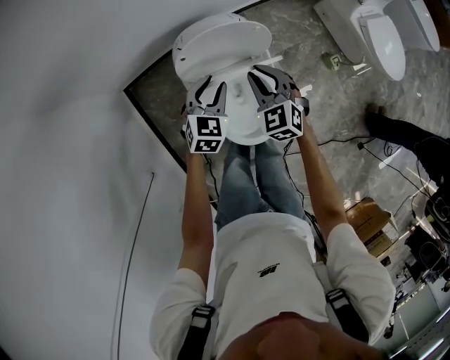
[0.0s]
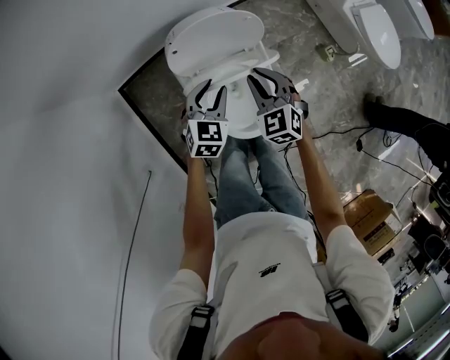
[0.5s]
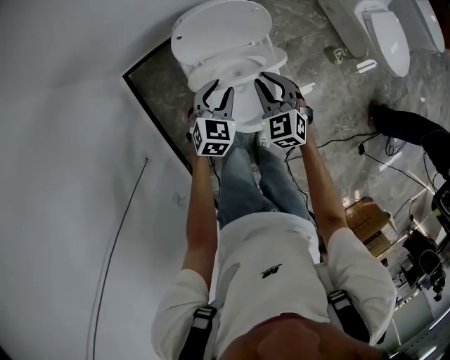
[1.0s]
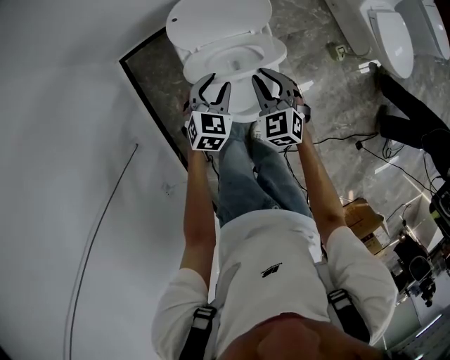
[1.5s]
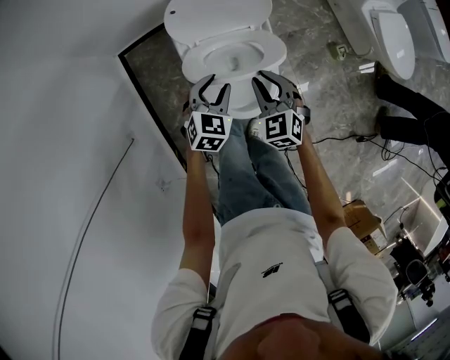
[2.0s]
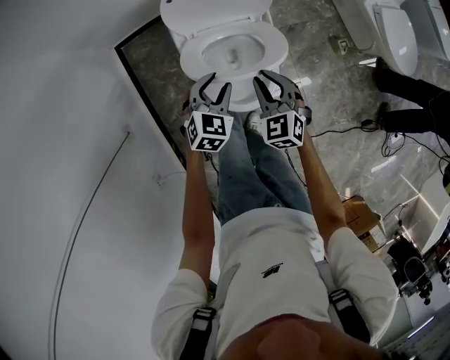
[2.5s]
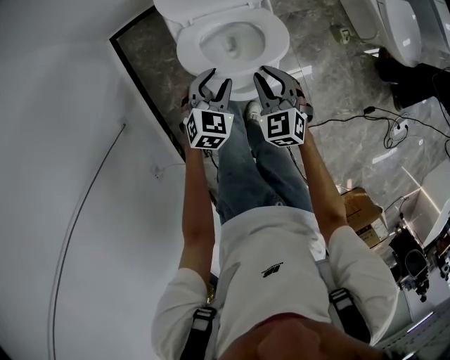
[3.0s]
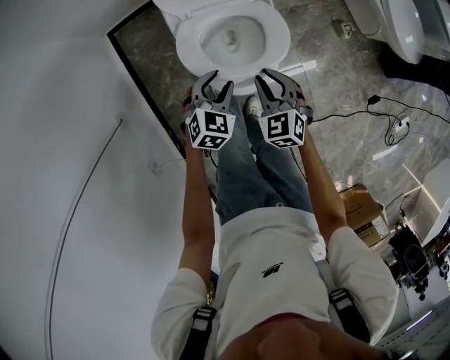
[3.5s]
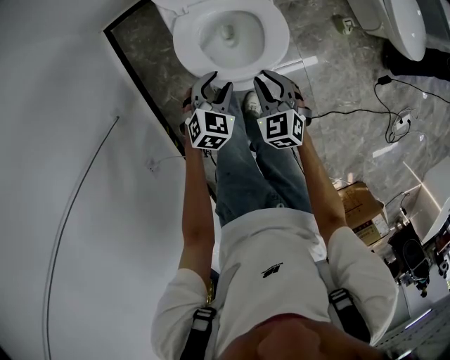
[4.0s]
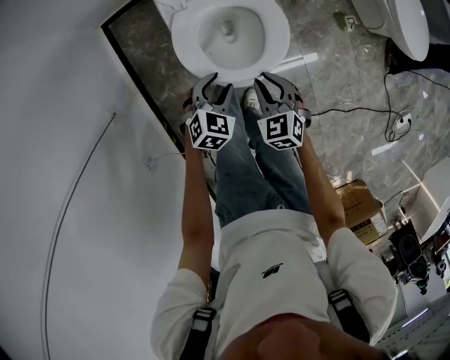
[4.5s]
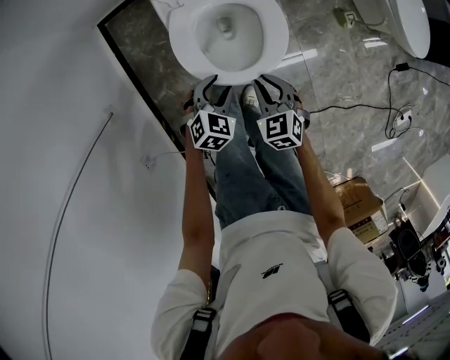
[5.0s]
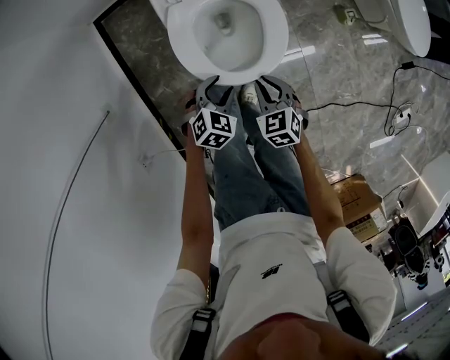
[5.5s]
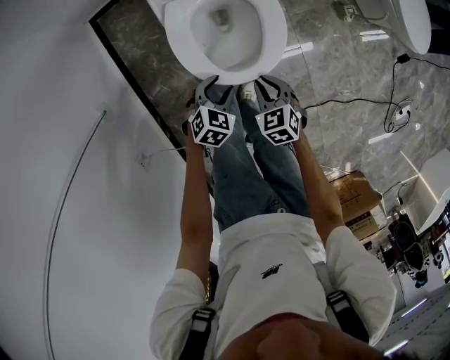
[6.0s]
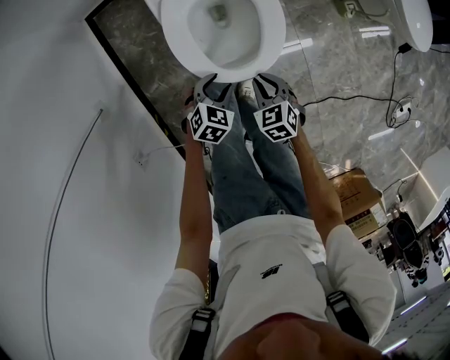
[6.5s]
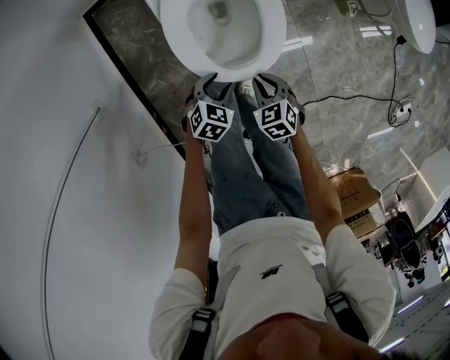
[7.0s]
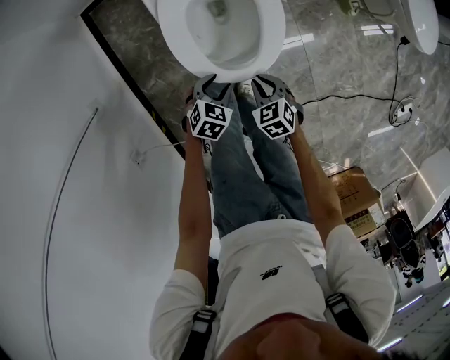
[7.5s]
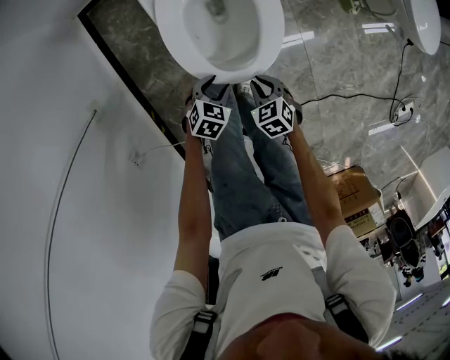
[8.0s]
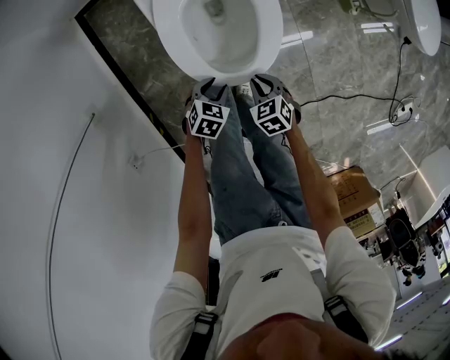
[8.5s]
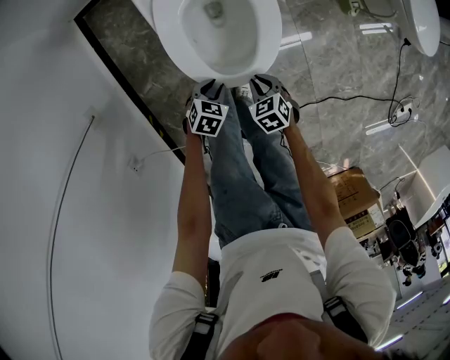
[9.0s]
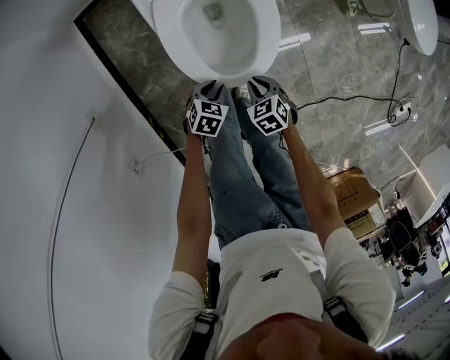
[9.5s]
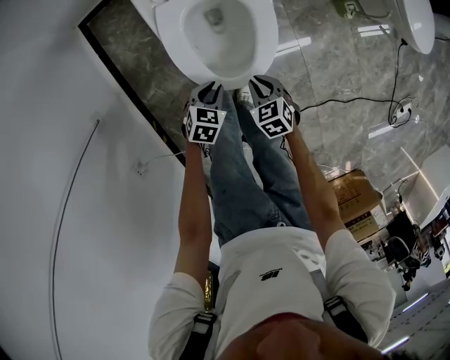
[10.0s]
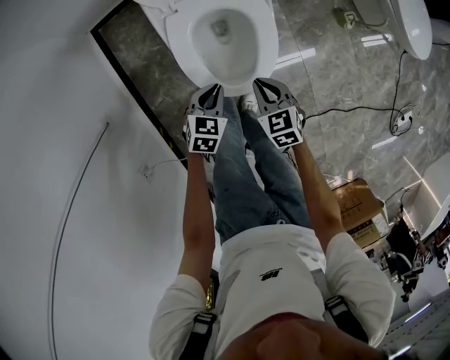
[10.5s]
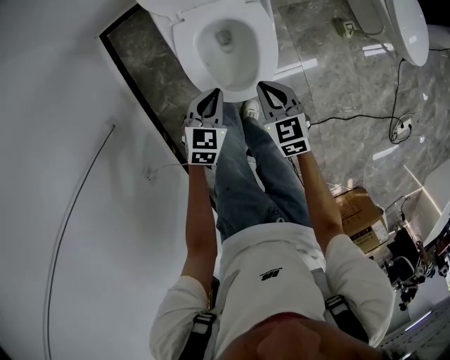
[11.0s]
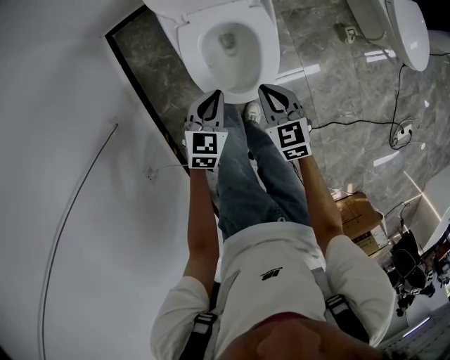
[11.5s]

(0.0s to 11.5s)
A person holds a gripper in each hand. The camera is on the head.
0.0s - 2.0s: Both grippers travel together backward, some 15 cm.
2.0s - 4.0s: Both grippers travel together backward and downward, approximately 15 cm.
4.0s - 6.0s: Both grippers travel together downward and backward, about 10 cm.
6.0s - 7.5s: The grippers both shift downward by some 5 cm.
7.5s - 9.5s: The two grippers go about 5 cm downward. The left gripper closes its fingers.
9.5s - 11.5s: The two grippers go about 20 cm upward. The right gripper rotates approximately 30 degrees. The left gripper rotates approximately 30 degrees.

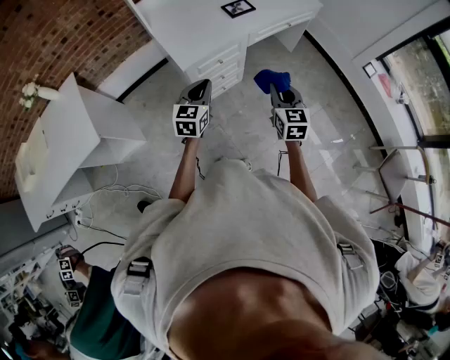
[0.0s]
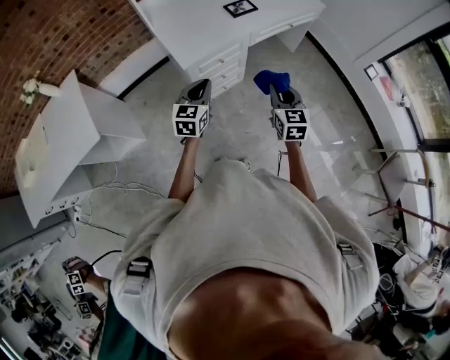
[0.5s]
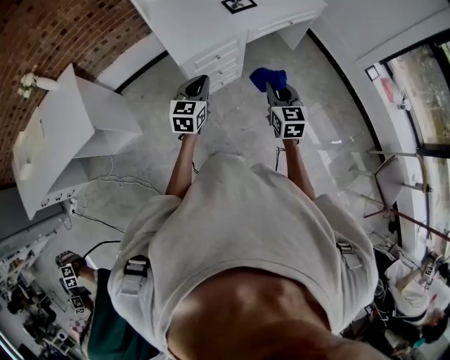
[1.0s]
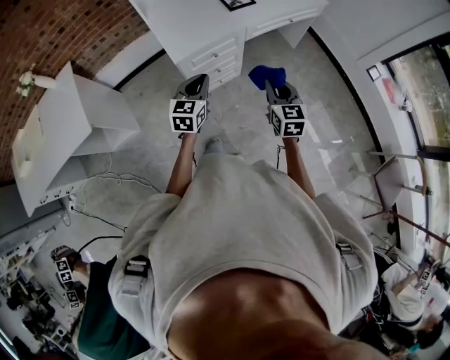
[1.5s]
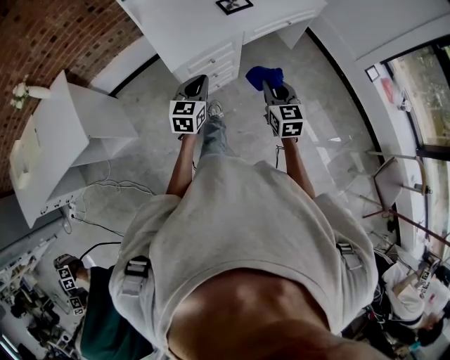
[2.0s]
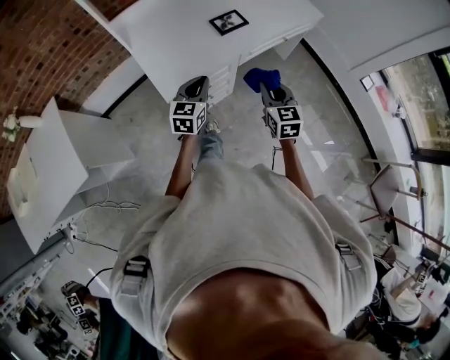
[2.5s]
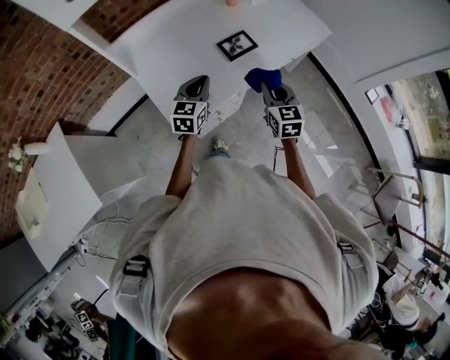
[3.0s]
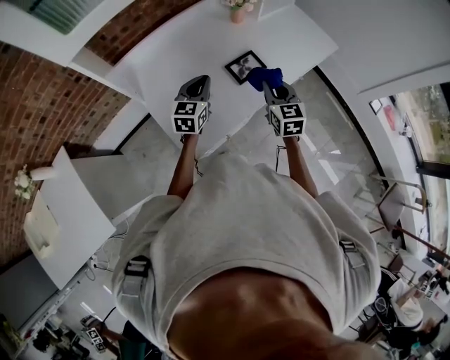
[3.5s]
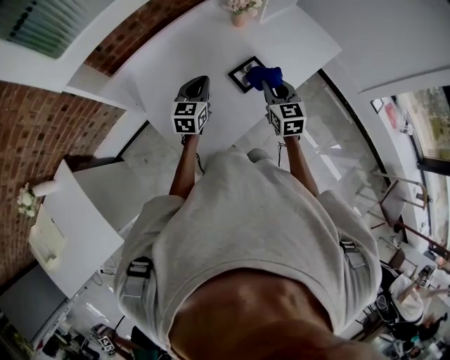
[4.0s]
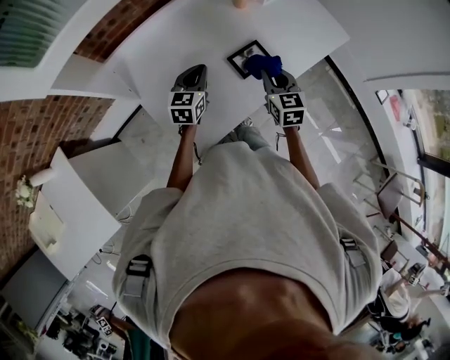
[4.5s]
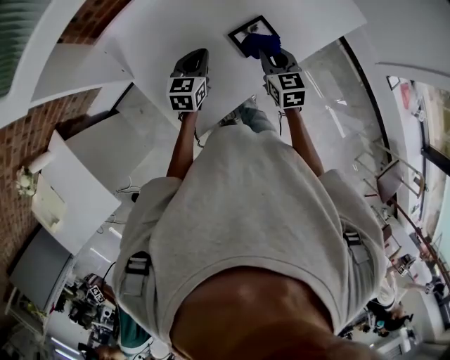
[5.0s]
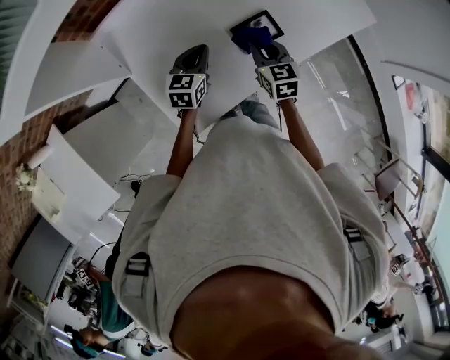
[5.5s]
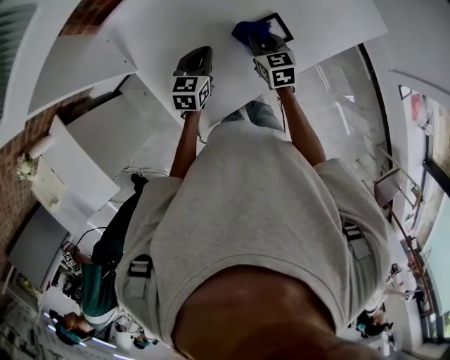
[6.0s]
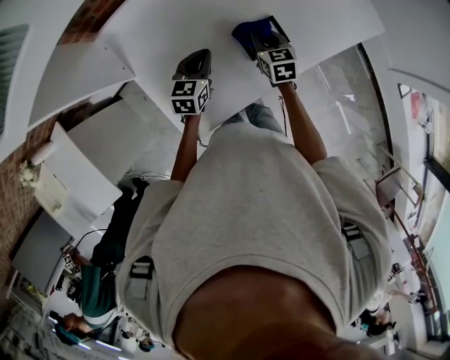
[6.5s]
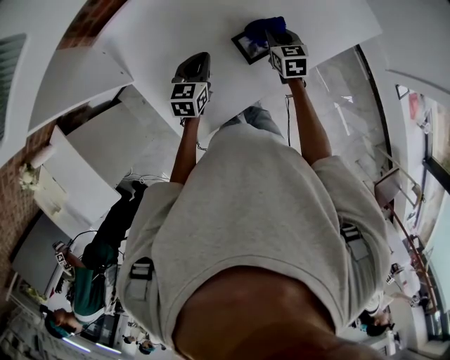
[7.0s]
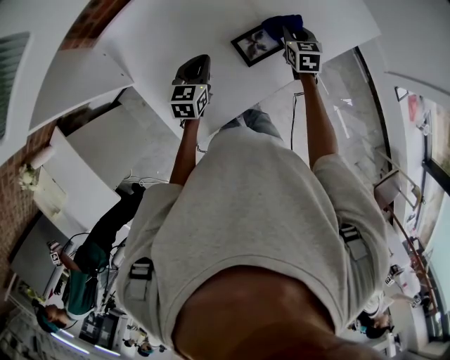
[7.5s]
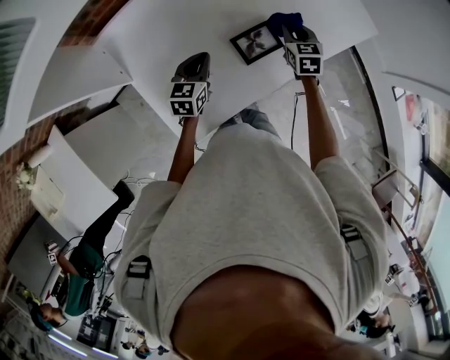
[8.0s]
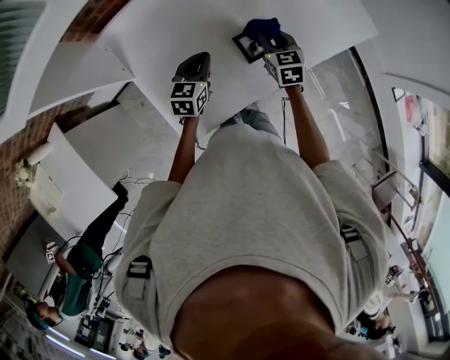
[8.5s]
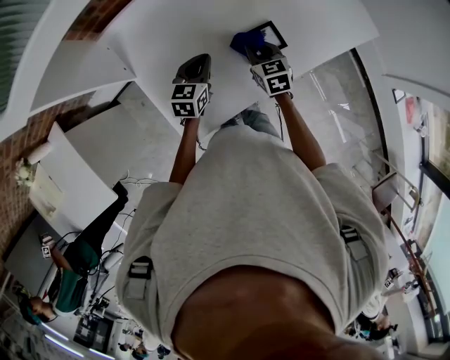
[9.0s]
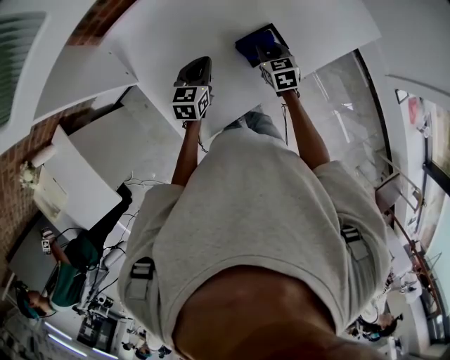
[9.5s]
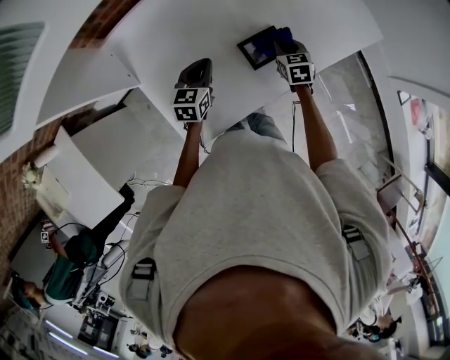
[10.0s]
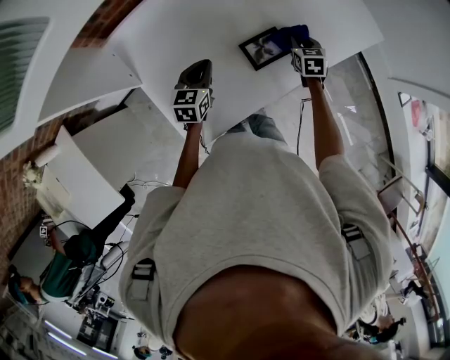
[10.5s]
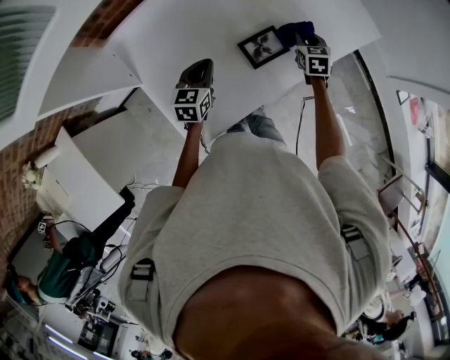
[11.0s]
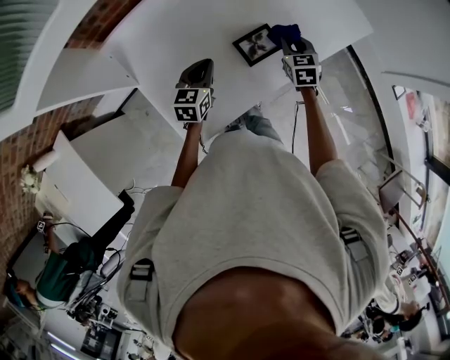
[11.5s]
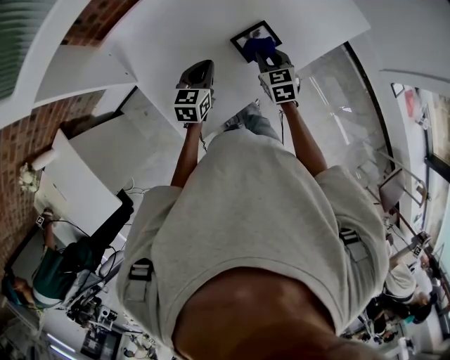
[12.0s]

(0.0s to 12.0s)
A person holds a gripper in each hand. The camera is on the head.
0.0s - 2.0s: Both grippers move forward, roughly 5 cm.
2.0s - 4.0s: The two grippers travel together, forward, roughly 50 cm.
4.0s - 6.0s: The right gripper travels downward, forward and to the left by approximately 20 cm, and rotates roughly 20 degrees. The left gripper goes some 10 cm downward.
6.0s - 8.0s: The right gripper goes some 15 cm to the right and forward.
8.0s - 10.0s: The right gripper moves downward, approximately 5 cm, and moves roughly 15 cm to the left and comes back.
10.0s - 12.0s: The left gripper changes place by about 5 cm. The right gripper goes some 10 cm backward and upward.

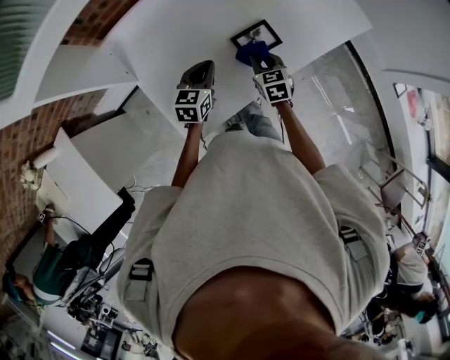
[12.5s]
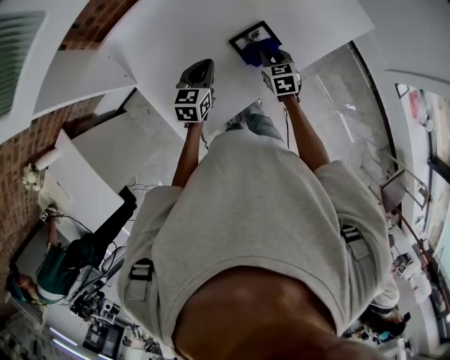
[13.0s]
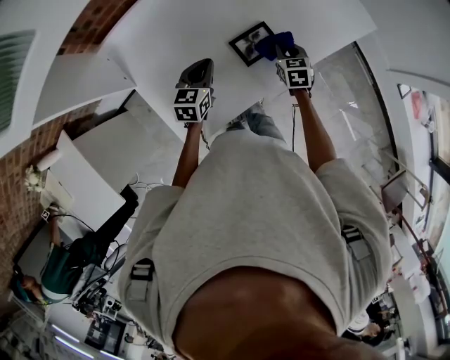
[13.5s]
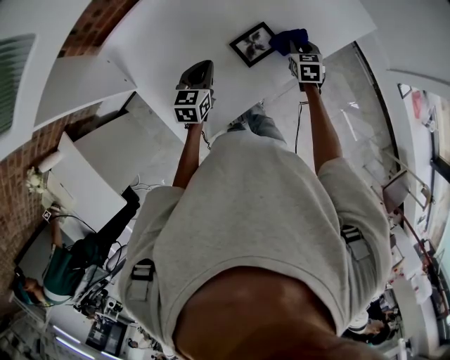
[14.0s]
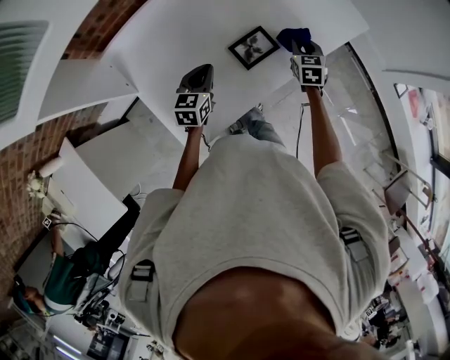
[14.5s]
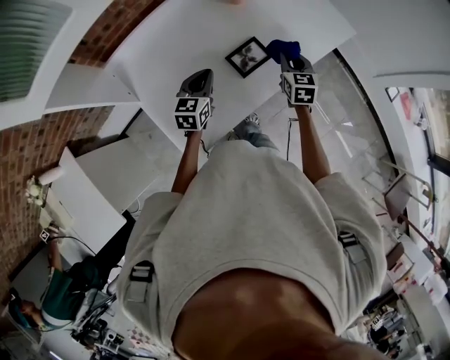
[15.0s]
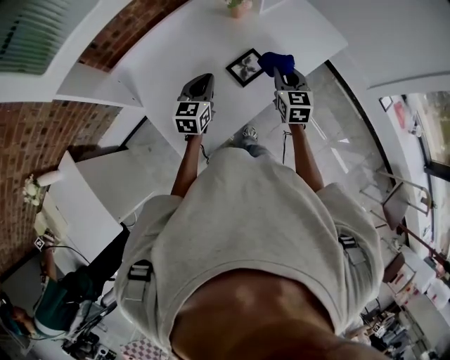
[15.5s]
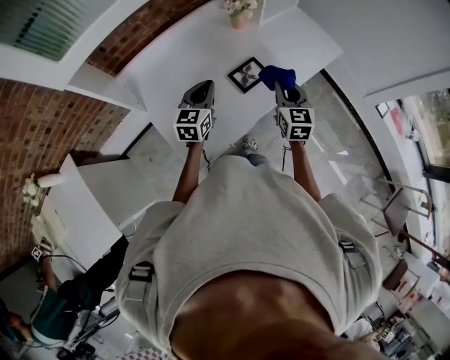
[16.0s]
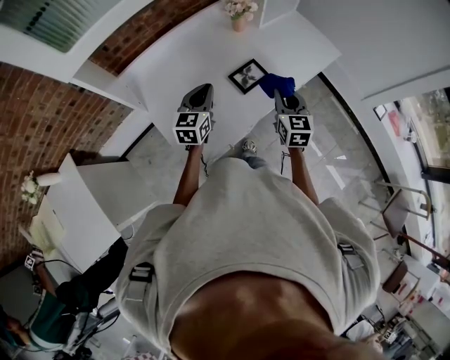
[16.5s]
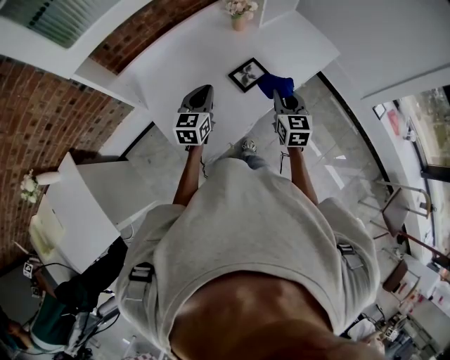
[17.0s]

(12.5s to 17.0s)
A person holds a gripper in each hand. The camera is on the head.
12.5s - 14.5s: The right gripper is displaced to the right and forward by roughly 20 cm.
14.5s - 17.0s: The right gripper heads backward and upward, covering about 25 cm, and swivels approximately 20 degrees; the left gripper is displaced upward and backward by approximately 15 cm.
